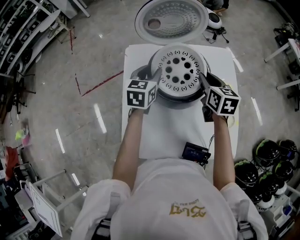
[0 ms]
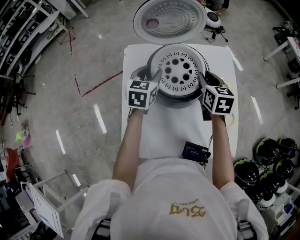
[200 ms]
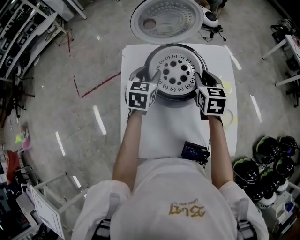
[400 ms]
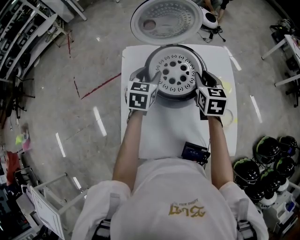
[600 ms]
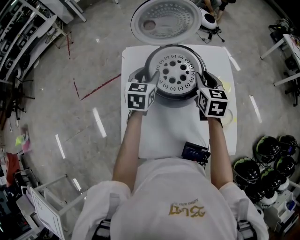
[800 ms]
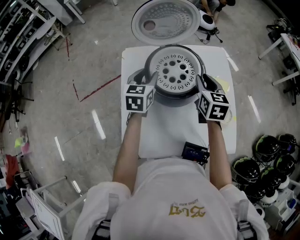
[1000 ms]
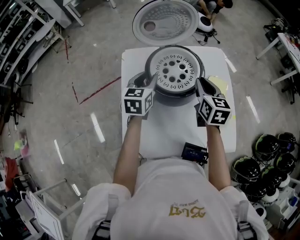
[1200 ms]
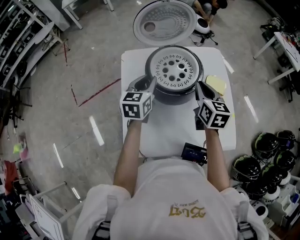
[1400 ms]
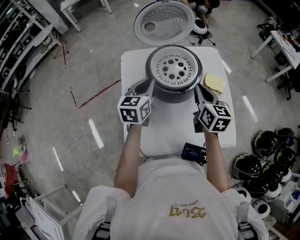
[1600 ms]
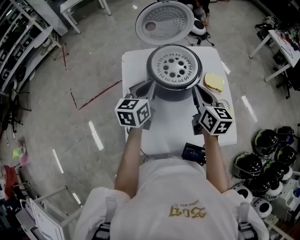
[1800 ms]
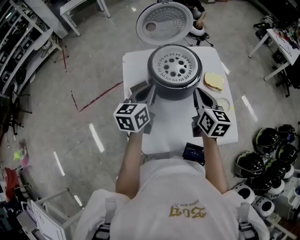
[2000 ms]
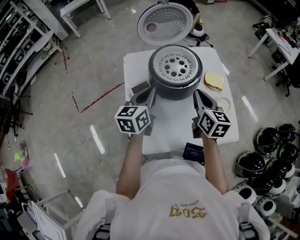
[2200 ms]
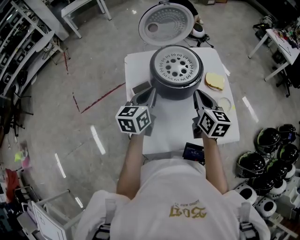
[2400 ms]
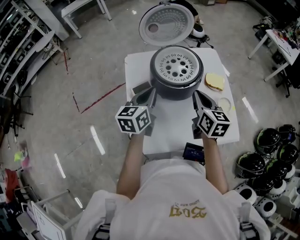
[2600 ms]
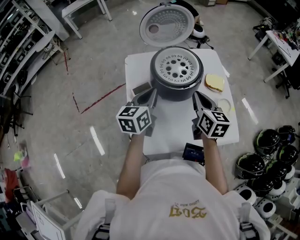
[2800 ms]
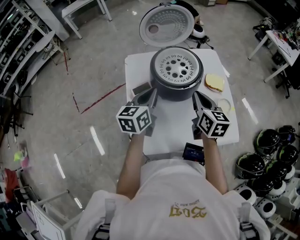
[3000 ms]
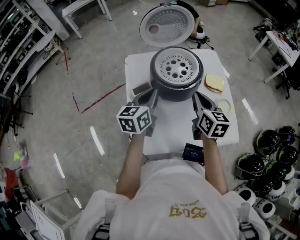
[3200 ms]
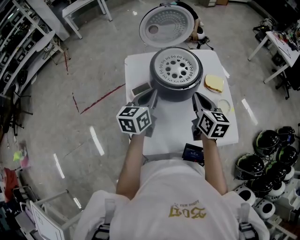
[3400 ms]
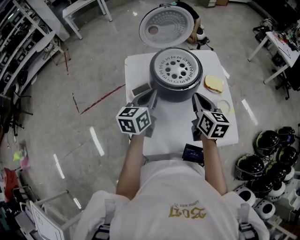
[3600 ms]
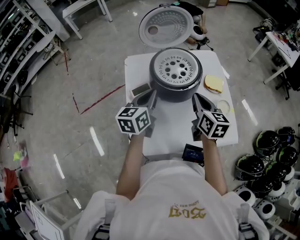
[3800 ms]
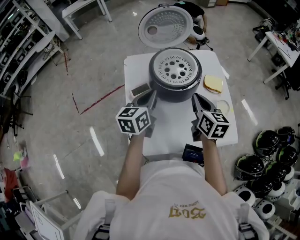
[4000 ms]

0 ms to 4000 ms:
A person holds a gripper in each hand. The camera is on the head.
0 ms to 1400 ms: The two grippers go approximately 5 cm backward.
1400 ms to 2600 ms: Both grippers move backward, some 10 cm. The left gripper closes.
2600 ms to 4000 ms: Both grippers stay about where they are.

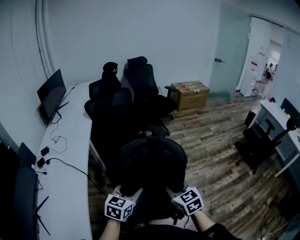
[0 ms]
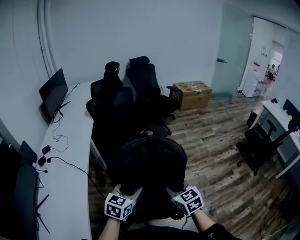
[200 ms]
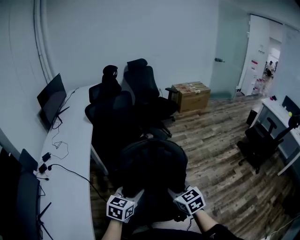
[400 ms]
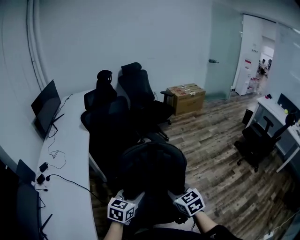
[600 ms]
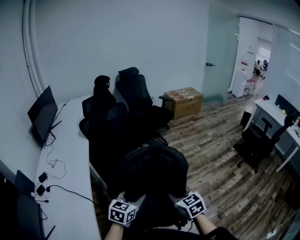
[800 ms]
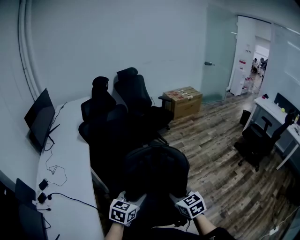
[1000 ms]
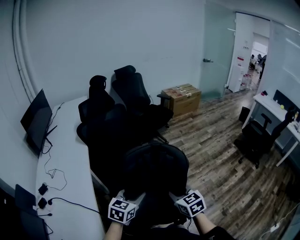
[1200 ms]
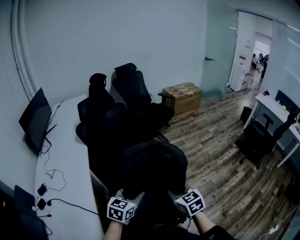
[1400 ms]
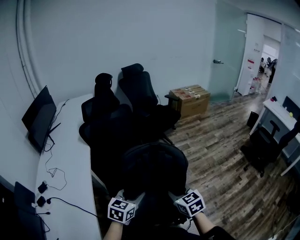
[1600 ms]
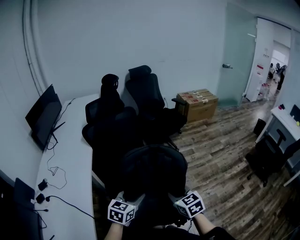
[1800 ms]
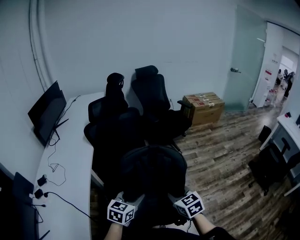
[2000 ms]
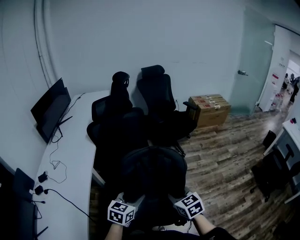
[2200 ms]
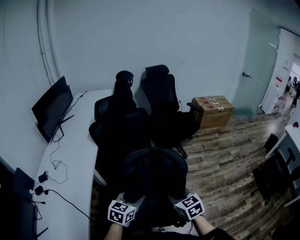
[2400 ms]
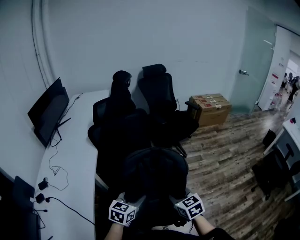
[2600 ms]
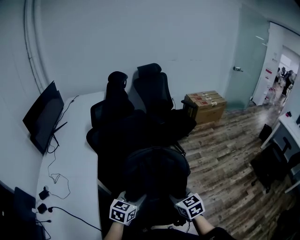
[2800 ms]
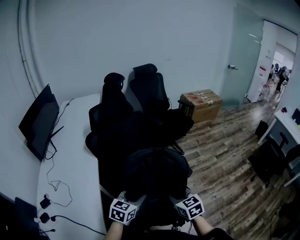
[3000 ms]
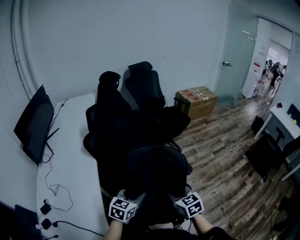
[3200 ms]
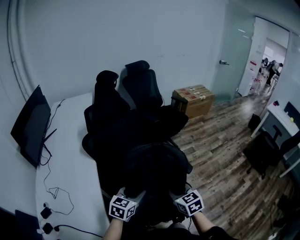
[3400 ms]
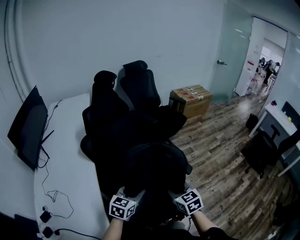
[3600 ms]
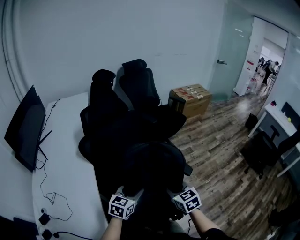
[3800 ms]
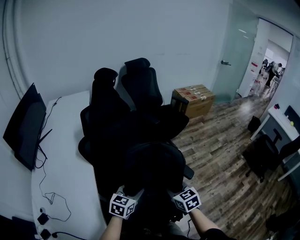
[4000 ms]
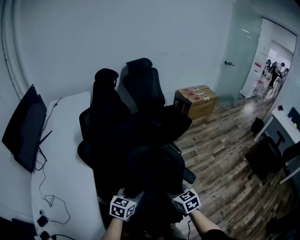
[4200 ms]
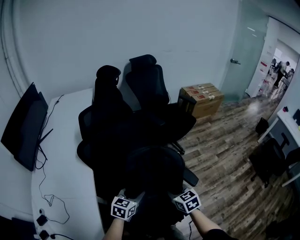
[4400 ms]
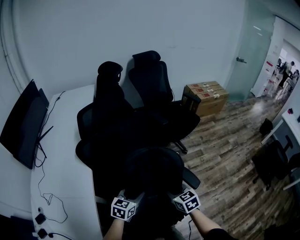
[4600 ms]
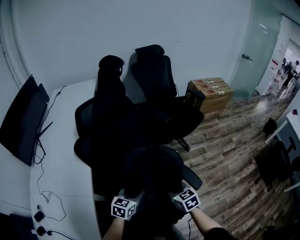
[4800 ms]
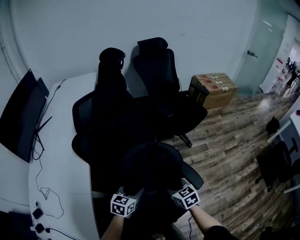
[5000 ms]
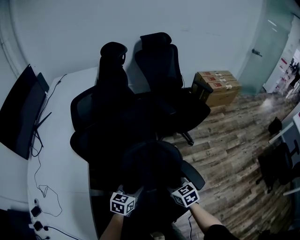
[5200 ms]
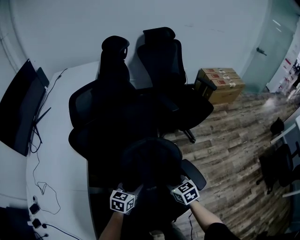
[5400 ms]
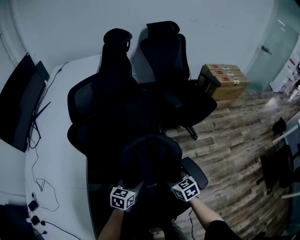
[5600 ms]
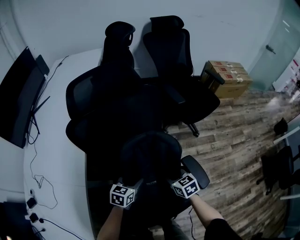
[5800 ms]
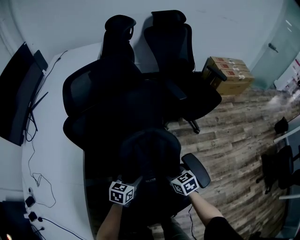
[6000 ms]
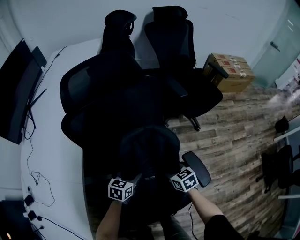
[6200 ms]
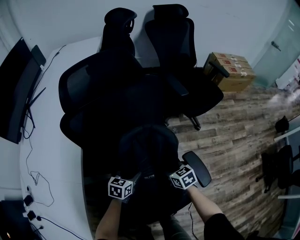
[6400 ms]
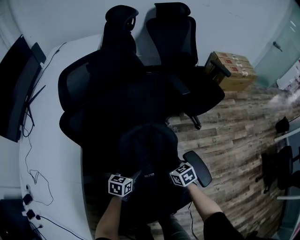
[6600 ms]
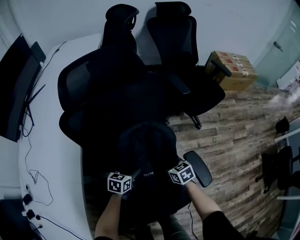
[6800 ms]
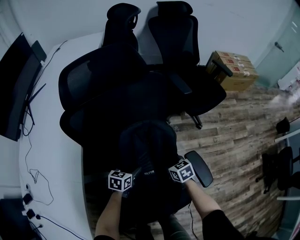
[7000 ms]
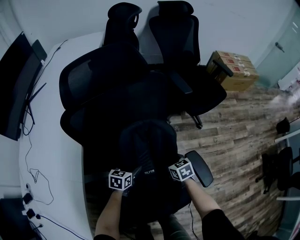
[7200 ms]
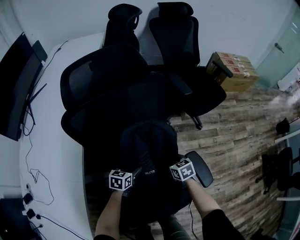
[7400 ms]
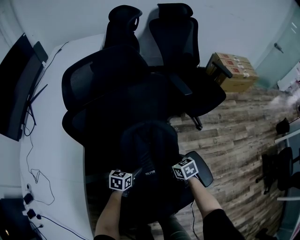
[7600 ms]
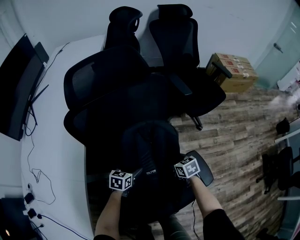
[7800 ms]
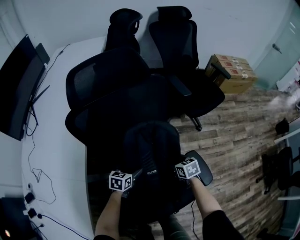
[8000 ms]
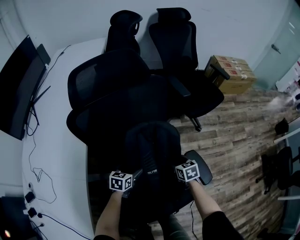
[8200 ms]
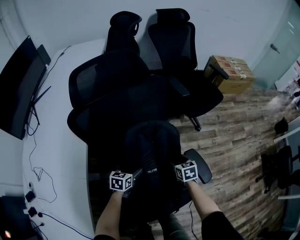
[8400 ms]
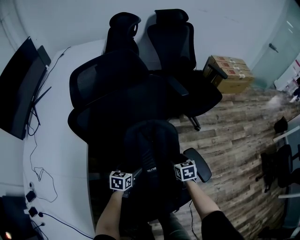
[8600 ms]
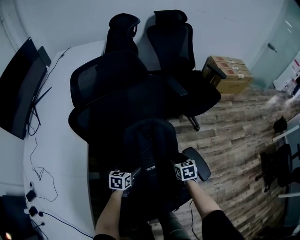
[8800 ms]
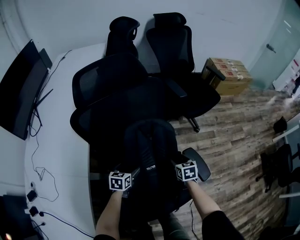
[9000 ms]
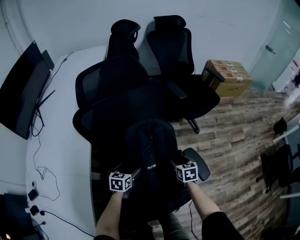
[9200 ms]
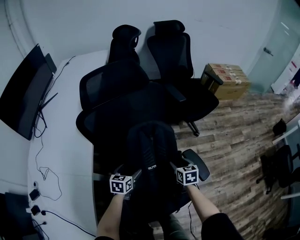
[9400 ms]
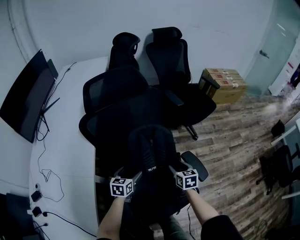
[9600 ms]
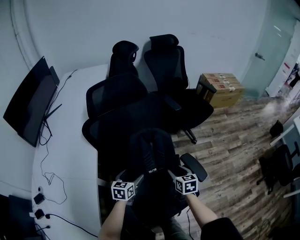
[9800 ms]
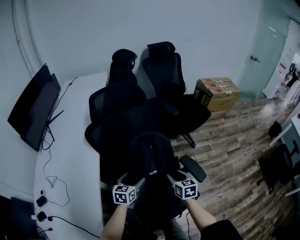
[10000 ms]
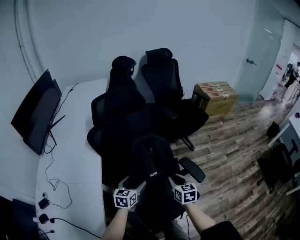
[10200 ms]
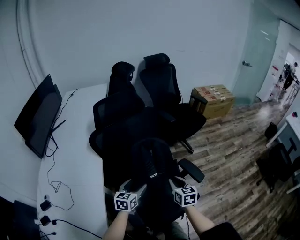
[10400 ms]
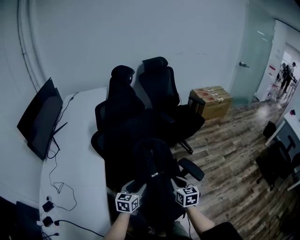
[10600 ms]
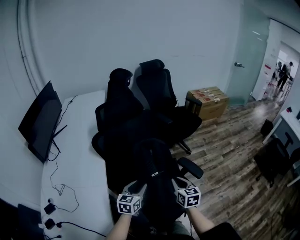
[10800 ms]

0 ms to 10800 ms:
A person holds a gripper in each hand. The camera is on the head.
0 ms to 1600 ms: The left gripper goes some 25 cm forward, while the right gripper is displaced forward and to the left by roughly 25 cm.
1600 ms to 3000 ms: Both grippers travel together forward and to the left, some 20 cm.
3000 ms to 4600 ms: The grippers both shift forward and downward by about 20 cm.
4600 ms to 6200 ms: Both grippers travel together downward and forward, approximately 20 cm.
6200 ms to 7800 ms: The left gripper shifts by about 5 cm, and opens its fingers. The right gripper moves downward, roughly 5 cm, and opens its fingers.
7800 ms to 9200 ms: Both grippers move upward, approximately 5 cm. The right gripper changes its angle by about 20 degrees.
9200 ms to 10800 ms: The left gripper goes some 25 cm upward and backward, turns by some 30 degrees, and closes. Meanwhile the right gripper heads backward and upward, covering roughly 30 cm, turns by approximately 30 degrees, and closes up.

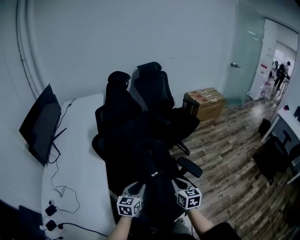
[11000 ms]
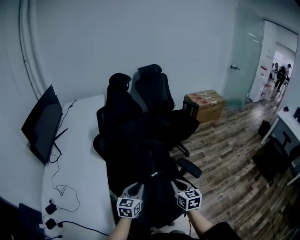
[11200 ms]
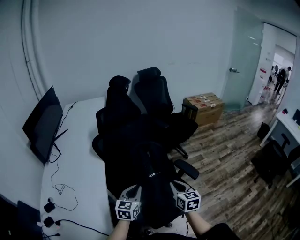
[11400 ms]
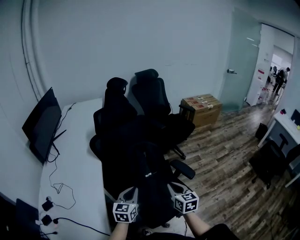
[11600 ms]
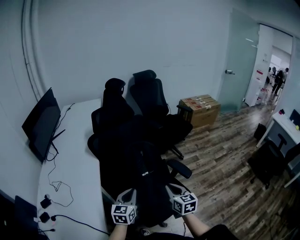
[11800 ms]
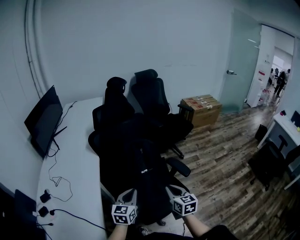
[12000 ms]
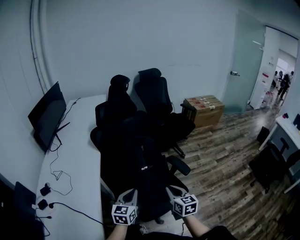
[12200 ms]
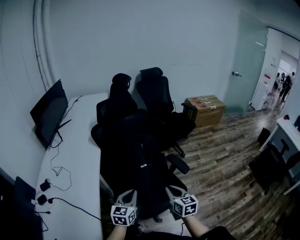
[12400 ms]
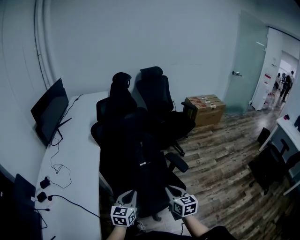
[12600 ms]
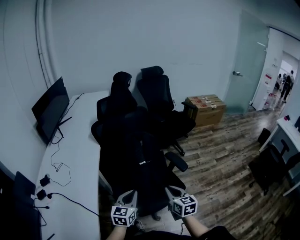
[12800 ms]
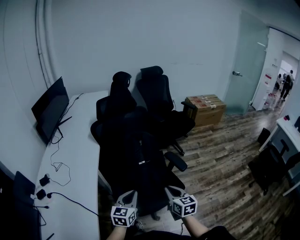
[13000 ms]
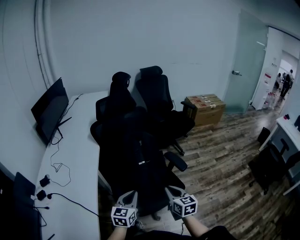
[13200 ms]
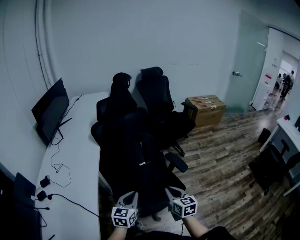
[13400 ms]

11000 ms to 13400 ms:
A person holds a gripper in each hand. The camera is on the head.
11000 ms to 12200 ms: The two grippers go approximately 15 cm backward and to the right.
12200 ms to 13400 ms: The left gripper heads backward, covering roughly 5 cm.

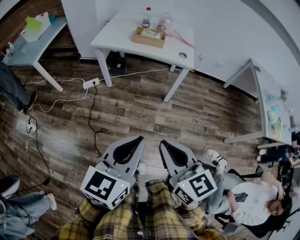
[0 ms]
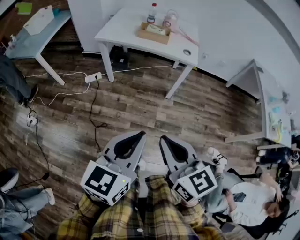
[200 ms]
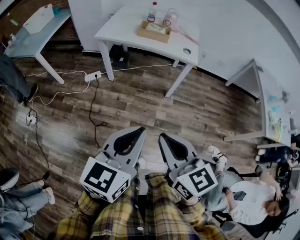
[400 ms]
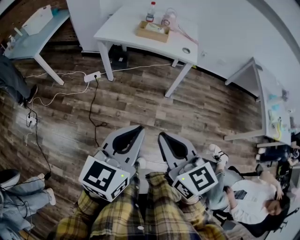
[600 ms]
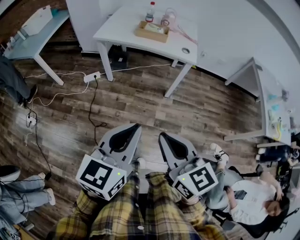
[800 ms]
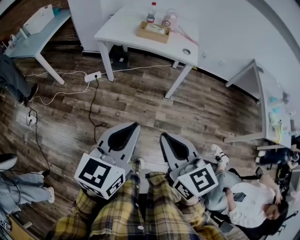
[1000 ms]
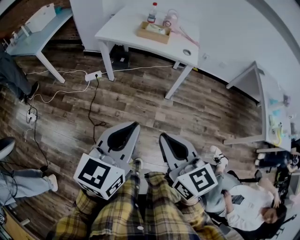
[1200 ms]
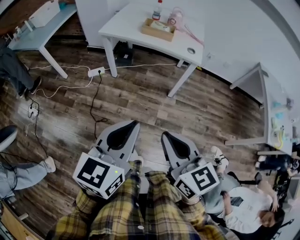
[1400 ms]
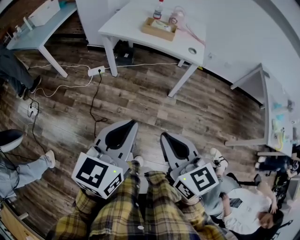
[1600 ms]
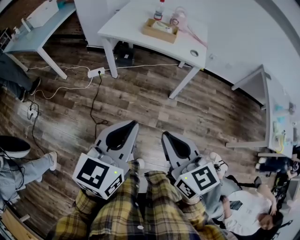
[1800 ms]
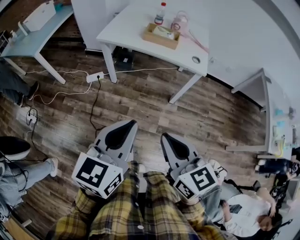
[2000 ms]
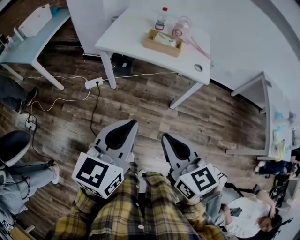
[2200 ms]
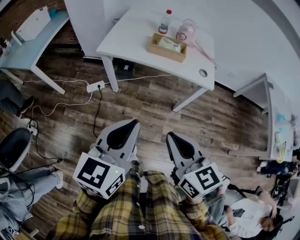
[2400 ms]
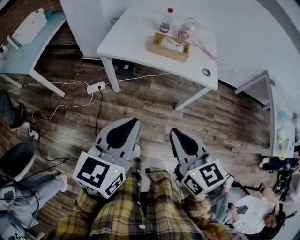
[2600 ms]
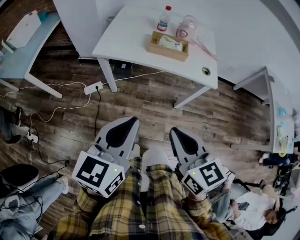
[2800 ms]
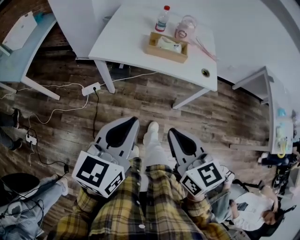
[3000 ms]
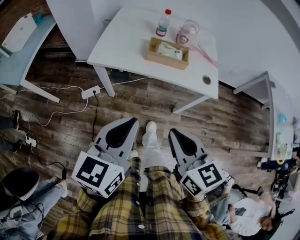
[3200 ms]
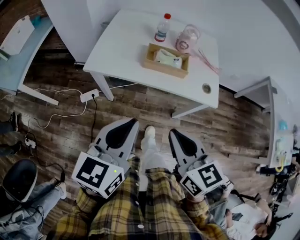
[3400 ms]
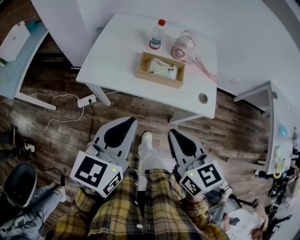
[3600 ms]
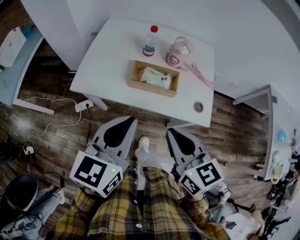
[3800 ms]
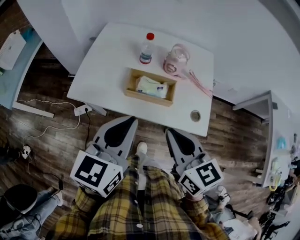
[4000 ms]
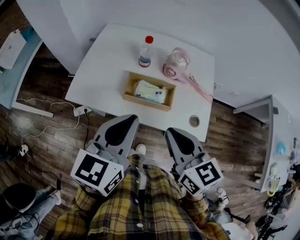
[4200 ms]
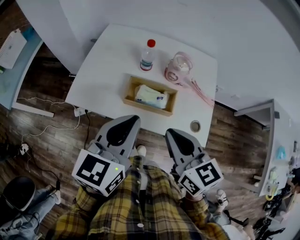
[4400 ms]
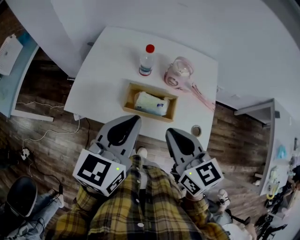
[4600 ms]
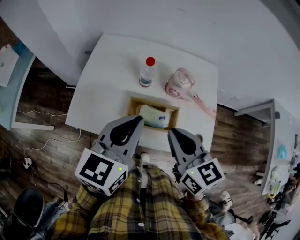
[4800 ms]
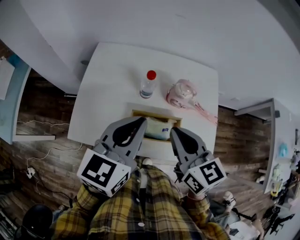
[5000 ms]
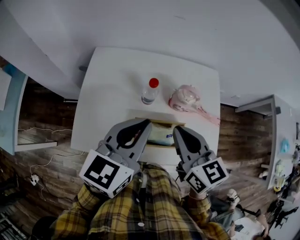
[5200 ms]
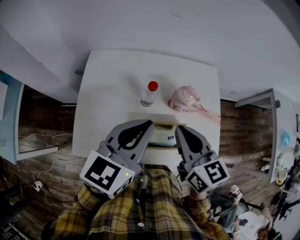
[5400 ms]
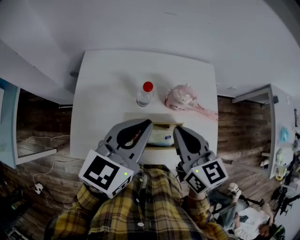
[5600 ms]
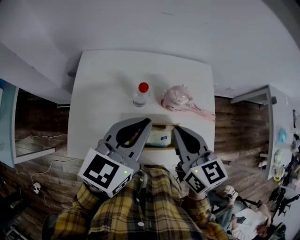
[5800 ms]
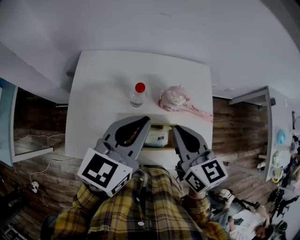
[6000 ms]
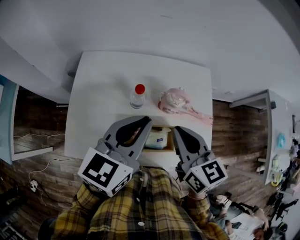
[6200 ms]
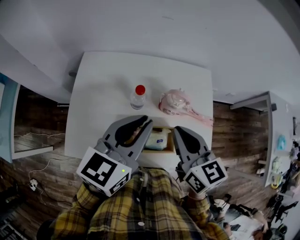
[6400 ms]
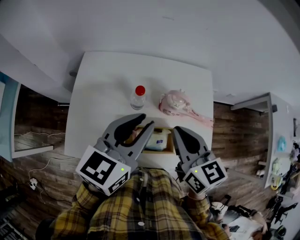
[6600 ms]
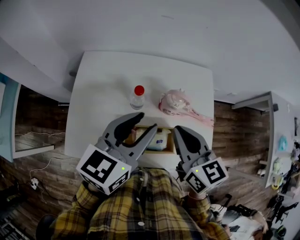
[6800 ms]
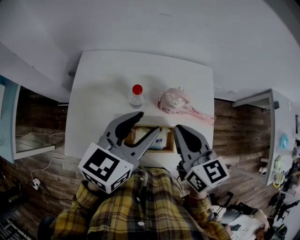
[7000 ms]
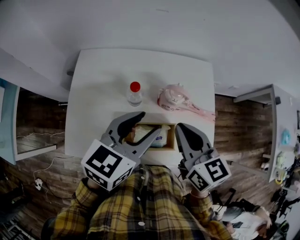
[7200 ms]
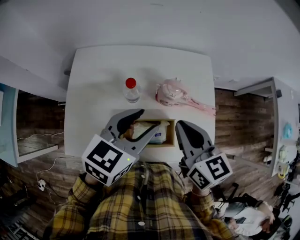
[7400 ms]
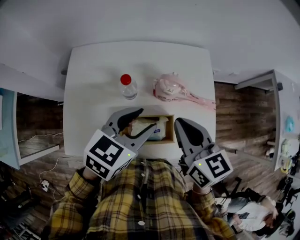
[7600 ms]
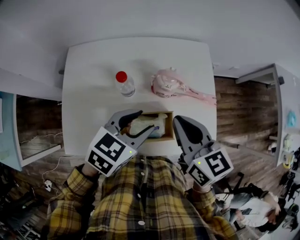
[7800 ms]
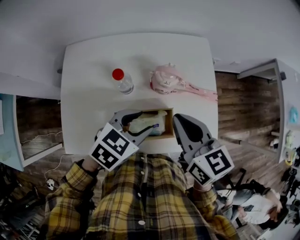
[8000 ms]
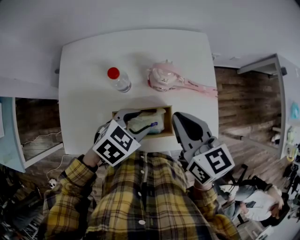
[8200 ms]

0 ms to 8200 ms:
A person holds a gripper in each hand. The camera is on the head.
0 ms to 1600 ms: The grippers make only small movements.
1600 ms to 3200 ms: Both grippers move forward, about 30 cm.
3200 ms to 5000 ms: Both grippers travel together forward, some 40 cm.
5000 ms to 6600 ms: The two grippers go approximately 5 cm forward.
6600 ms to 8200 ms: The right gripper changes place by about 5 cm, while the left gripper goes approximately 20 cm downward, tips its fingers downward by roughly 40 degrees, and opens up.
